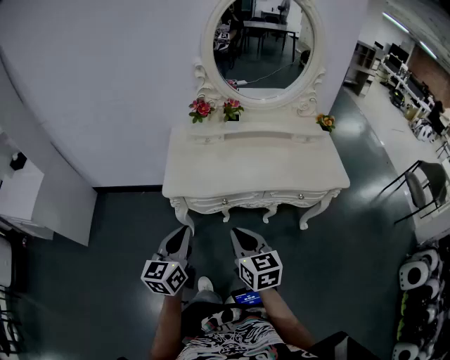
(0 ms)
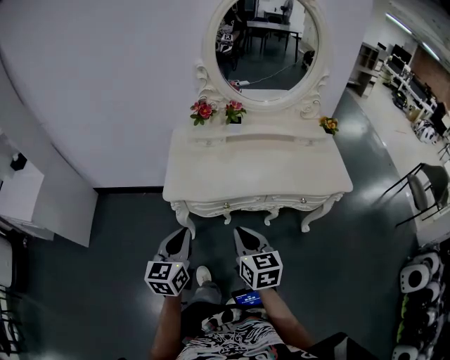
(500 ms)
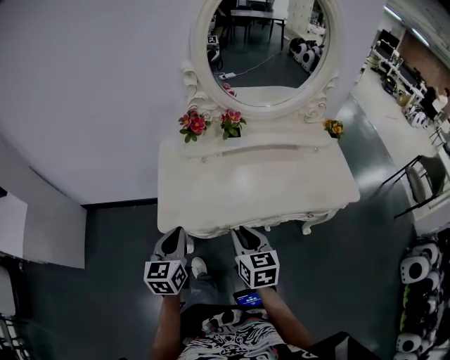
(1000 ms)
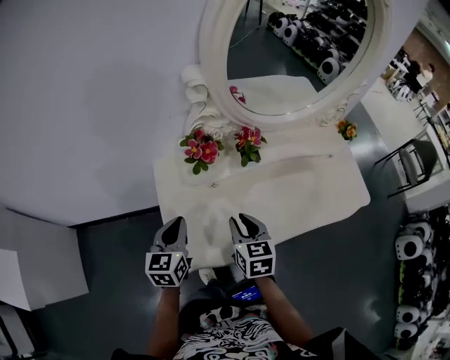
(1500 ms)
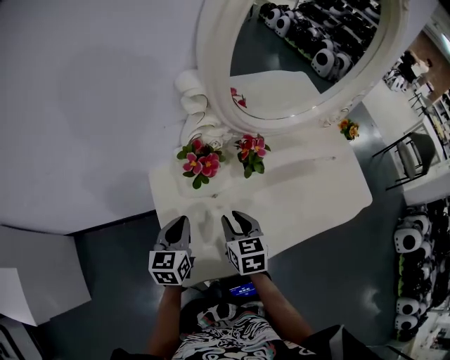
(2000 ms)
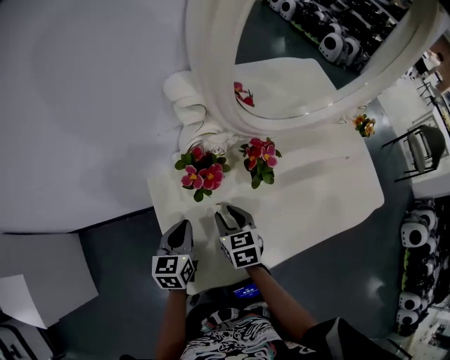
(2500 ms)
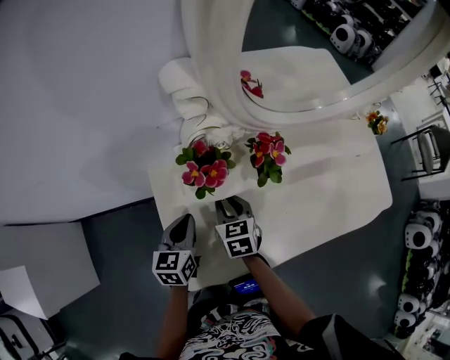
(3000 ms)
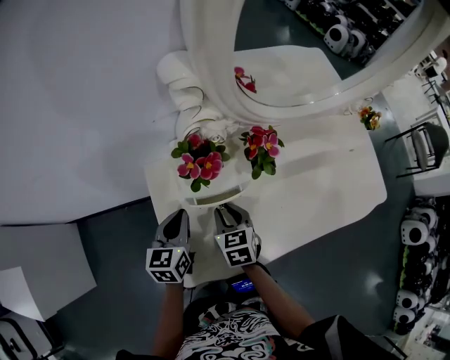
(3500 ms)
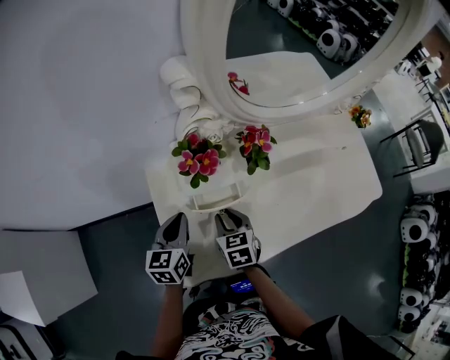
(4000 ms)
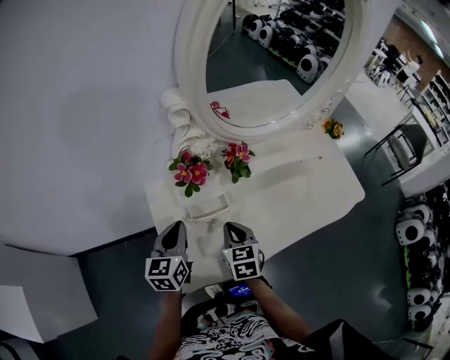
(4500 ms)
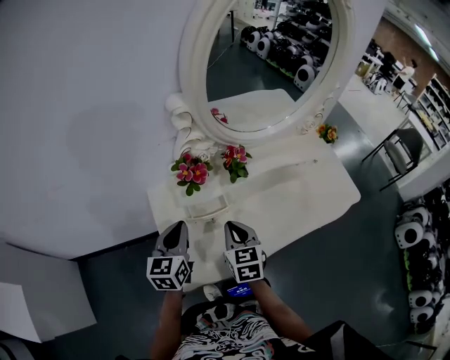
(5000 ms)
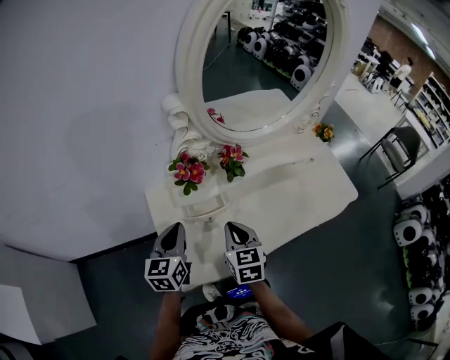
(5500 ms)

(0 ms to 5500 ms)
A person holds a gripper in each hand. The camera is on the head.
0 ms - 2000 ms: The two grippers travel together, forward, about 40 cm. The right gripper turns by roughly 30 degrees, and opens up. The left gripper turns by some 20 degrees.
2000 ms - 3500 ms: The right gripper shifts some 10 cm downward.
3500 ms - 5500 ms: The right gripper is displaced upward, backward and to the right by some 15 cm, and closes its fingers. Meanwhile the left gripper travels upward and backward by about 10 cm.

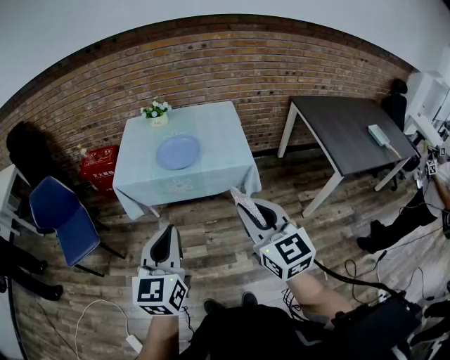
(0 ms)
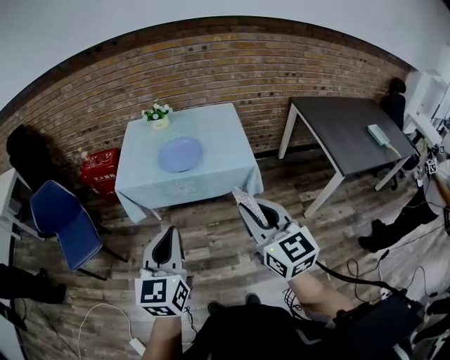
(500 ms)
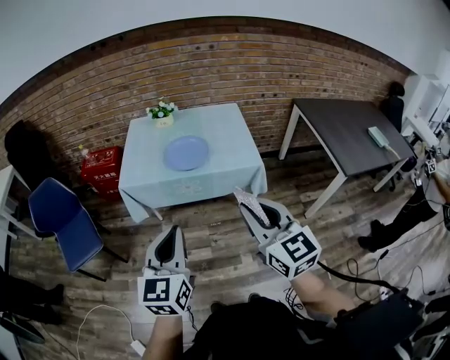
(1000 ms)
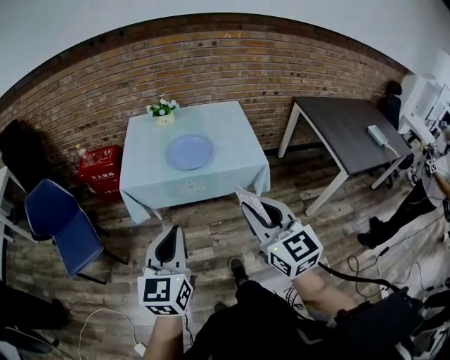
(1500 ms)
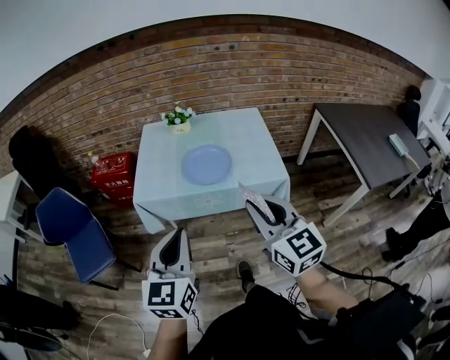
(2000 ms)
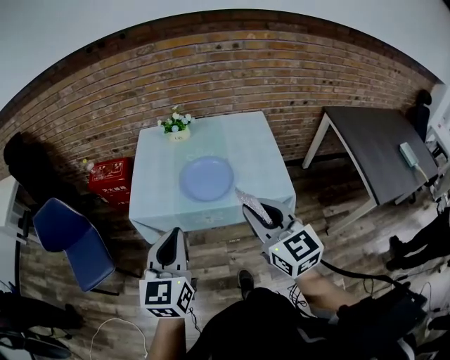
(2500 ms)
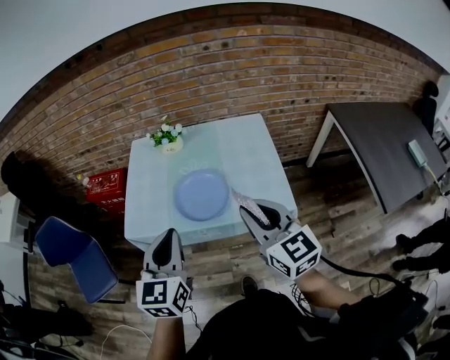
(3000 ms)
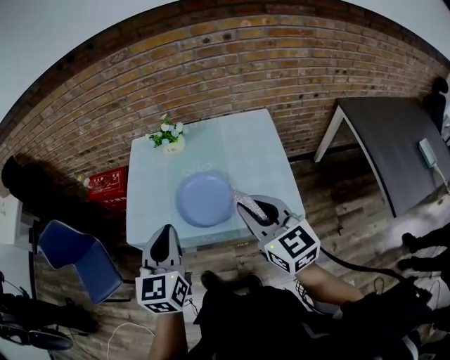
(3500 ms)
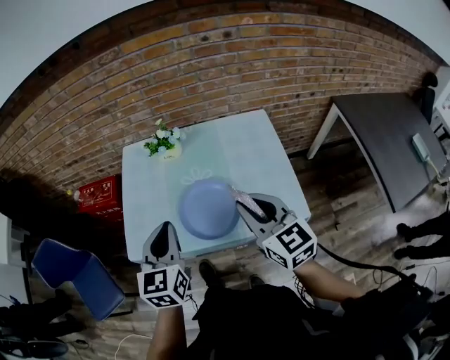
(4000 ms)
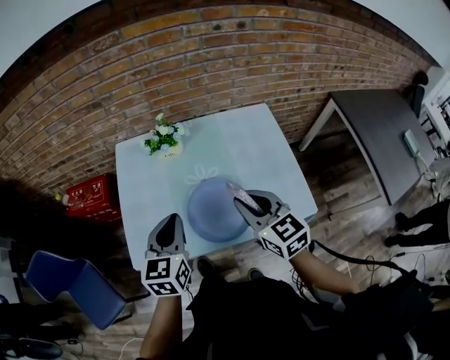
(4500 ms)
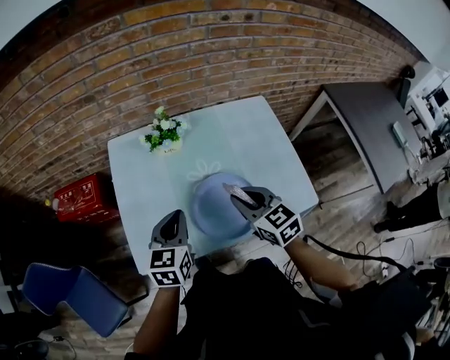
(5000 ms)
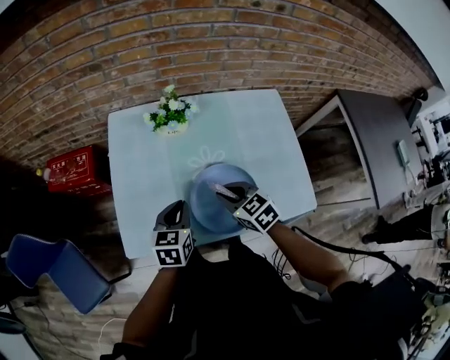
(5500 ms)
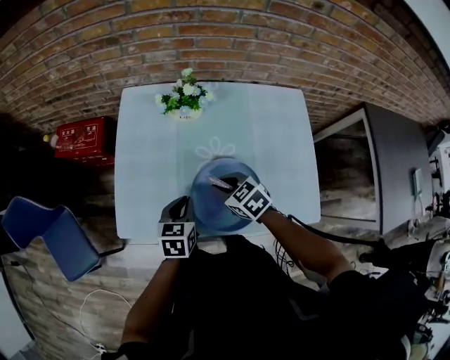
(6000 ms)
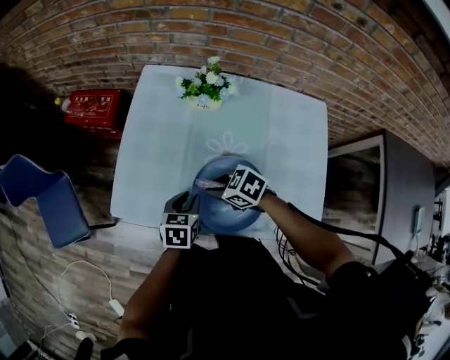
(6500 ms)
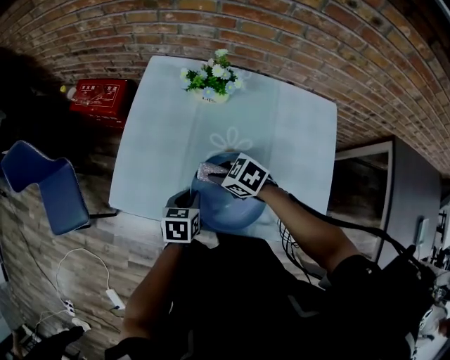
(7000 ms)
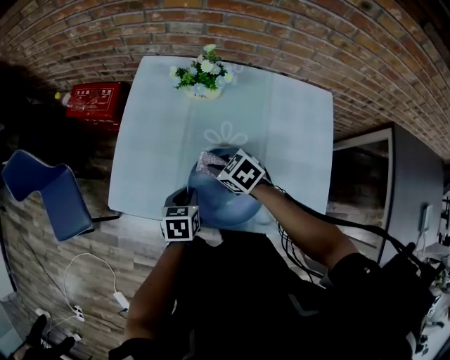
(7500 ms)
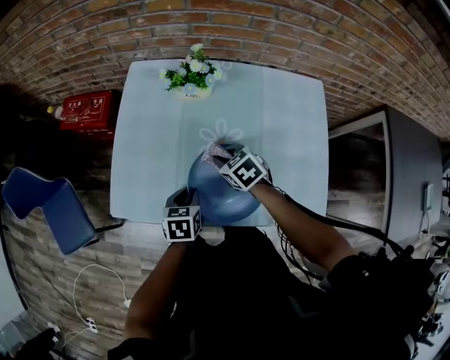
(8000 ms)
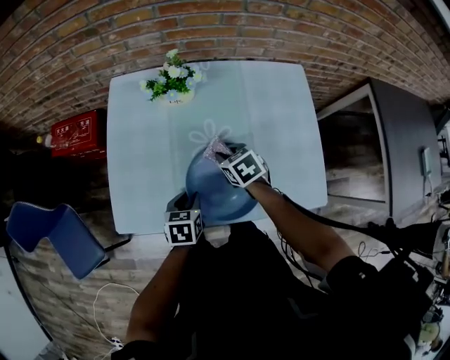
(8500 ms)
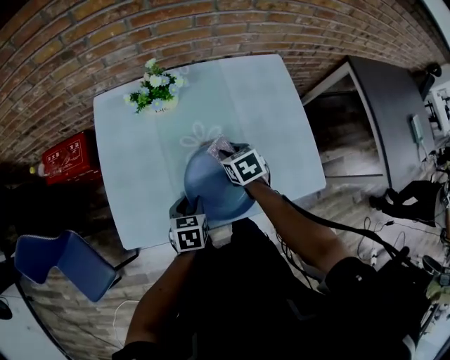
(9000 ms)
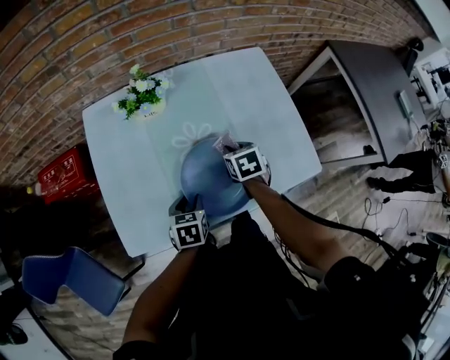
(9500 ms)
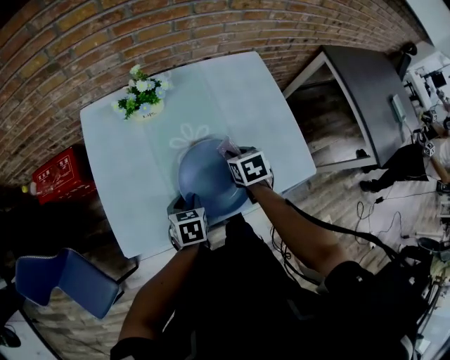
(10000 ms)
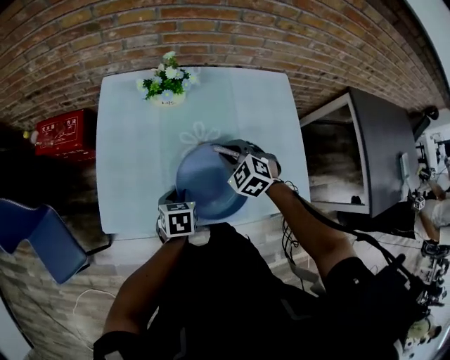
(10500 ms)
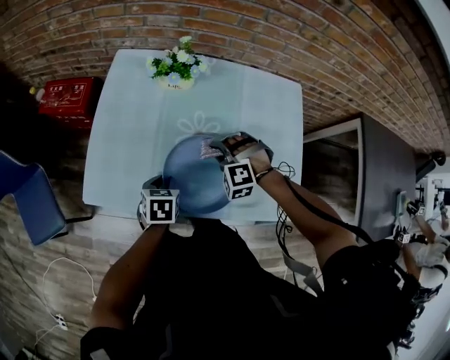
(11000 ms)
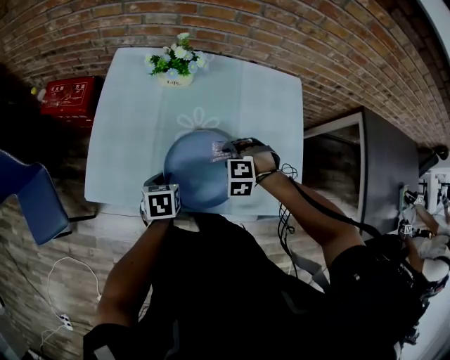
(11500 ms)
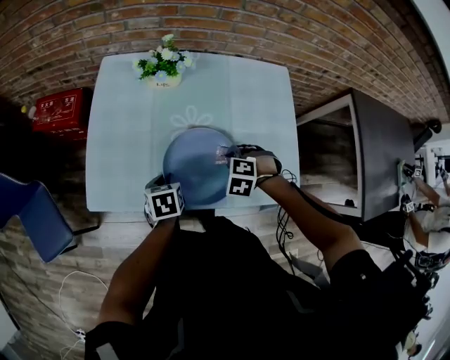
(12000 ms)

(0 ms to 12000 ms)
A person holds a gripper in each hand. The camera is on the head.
0 ms - 2000 ms: The grippers both shift forward and to the left by roughly 15 cm.
2000 ms - 4000 ms: The two grippers go approximately 35 cm forward.
4000 ms - 6000 ms: The right gripper heads downward, forward and to the left, covering about 30 cm, and tilts its fingers approximately 40 degrees downward. The left gripper is displaced downward and forward by approximately 25 cm, and turns by some 30 degrees.
6000 ms - 8000 ms: The left gripper heads downward, covering roughly 5 cm. The right gripper changes place by approximately 5 cm.
8000 ms - 10000 ms: The right gripper changes place by about 10 cm, and changes its angle by some 50 degrees.
10000 ms - 12000 ms: The right gripper rolls counterclockwise, seen from behind, by about 80 degrees. Meanwhile the left gripper turns by about 20 degrees.

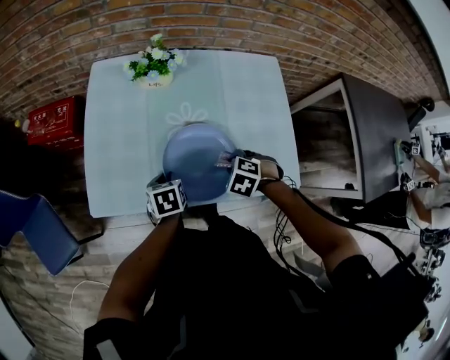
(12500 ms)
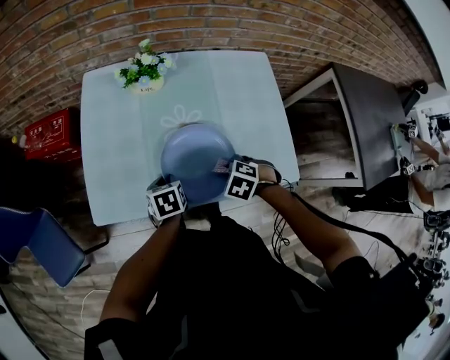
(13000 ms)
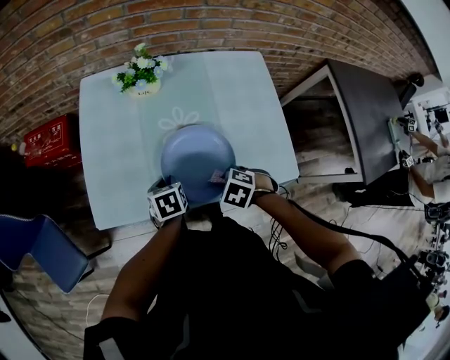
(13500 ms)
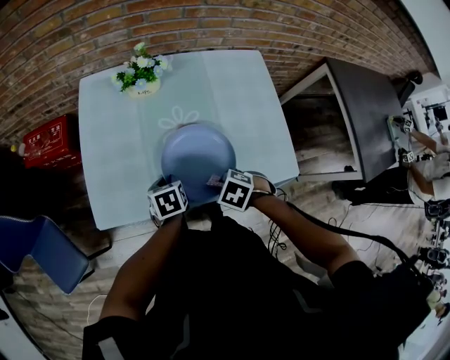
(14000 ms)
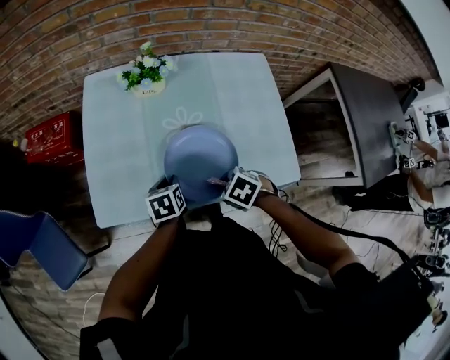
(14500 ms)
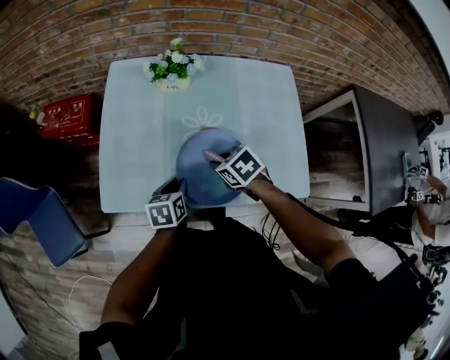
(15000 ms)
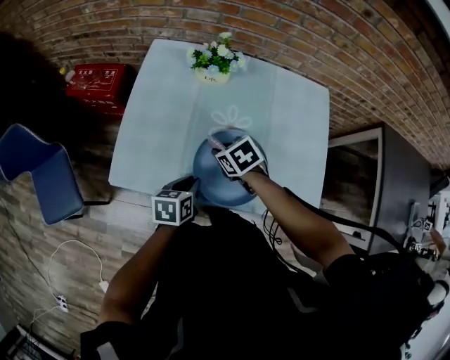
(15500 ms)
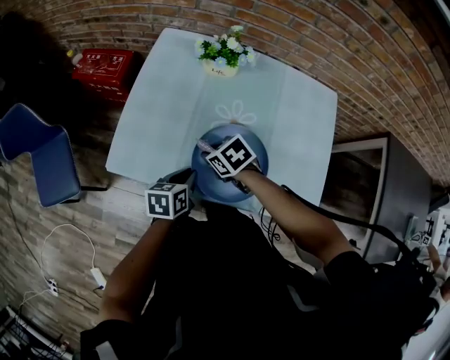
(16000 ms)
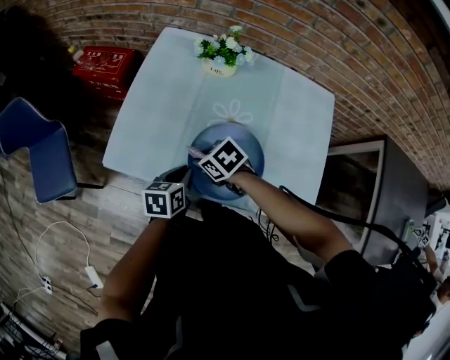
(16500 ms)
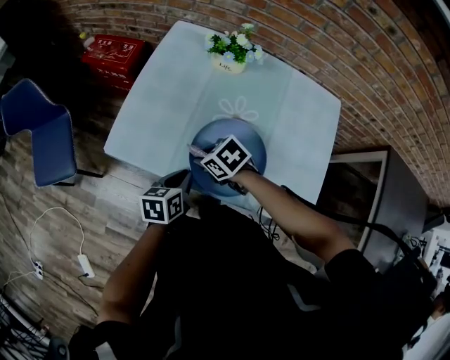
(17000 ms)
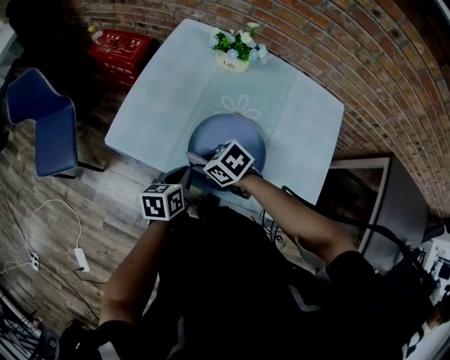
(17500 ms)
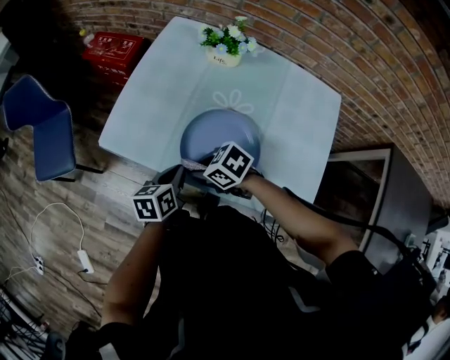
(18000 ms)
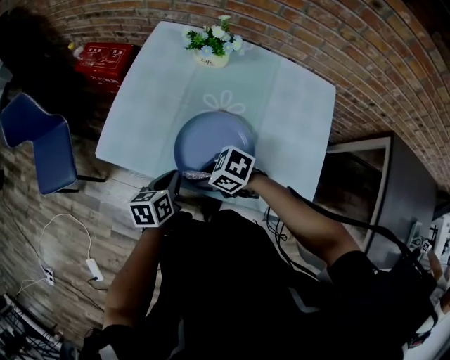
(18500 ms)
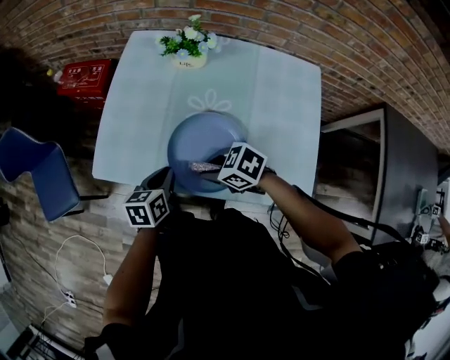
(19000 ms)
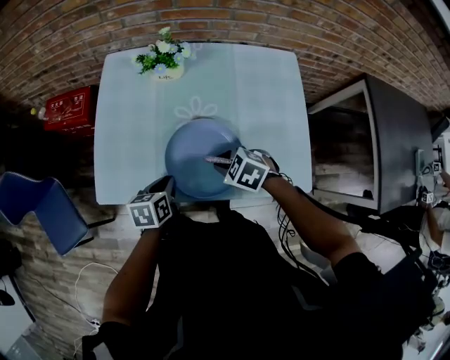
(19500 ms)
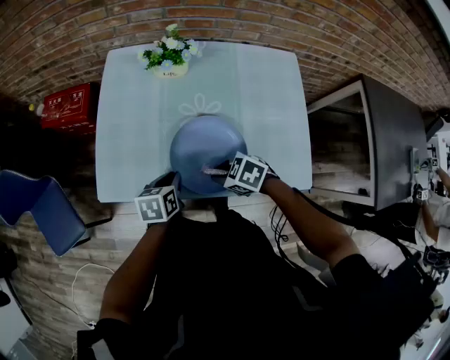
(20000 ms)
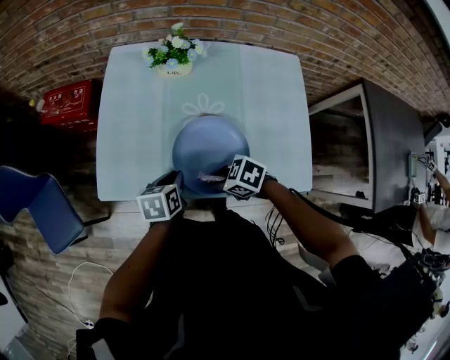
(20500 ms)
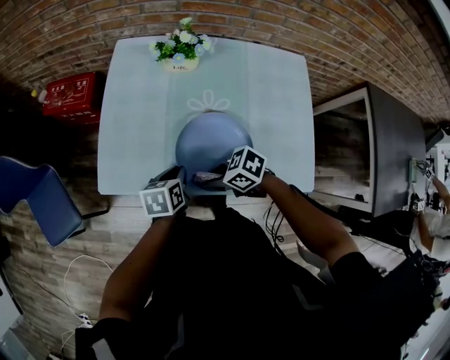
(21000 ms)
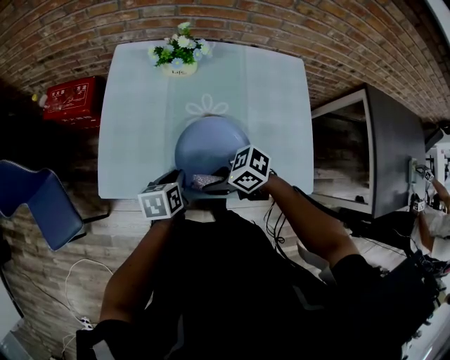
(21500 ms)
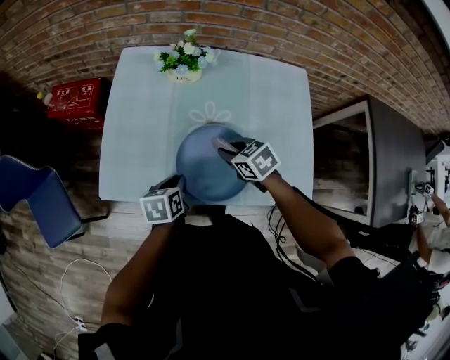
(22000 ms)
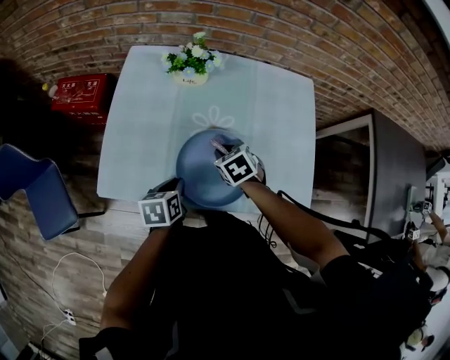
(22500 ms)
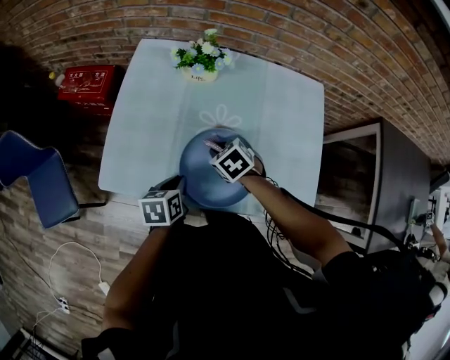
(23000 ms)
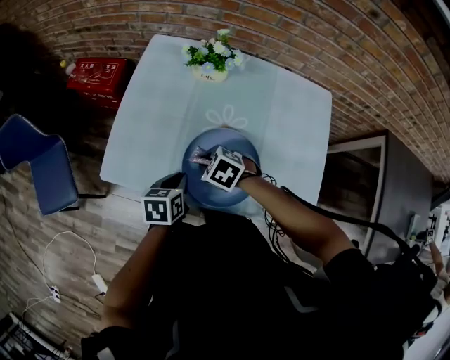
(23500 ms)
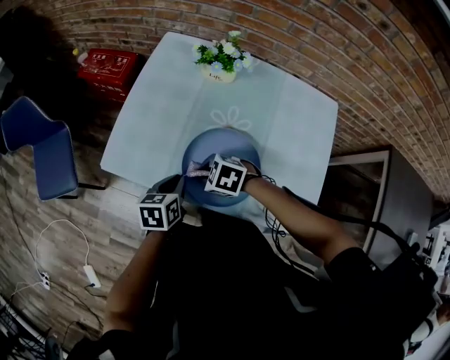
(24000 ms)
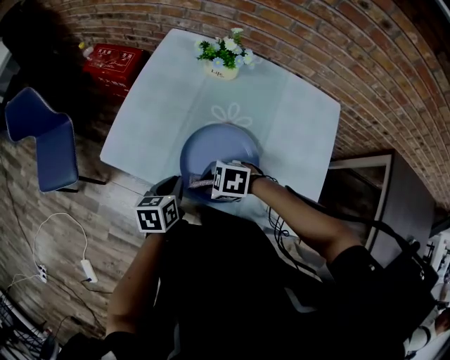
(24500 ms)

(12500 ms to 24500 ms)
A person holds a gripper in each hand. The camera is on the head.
12500 ms - 14500 ms: The right gripper shifts by some 10 cm, and changes its angle by some 30 degrees.
14500 ms - 16500 ms: The right gripper shifts by approximately 15 cm, and changes its angle by about 20 degrees.
16500 ms - 18500 ms: The right gripper changes place by some 10 cm, and rotates some 30 degrees.
18500 ms - 20500 ms: The left gripper rotates about 20 degrees.
20500 ms - 22500 ms: The right gripper ends up roughly 15 cm from where it was, and turns by some 40 degrees.
22500 ms - 24500 ms: The right gripper ends up some 15 cm from where it was, and rotates about 70 degrees.
